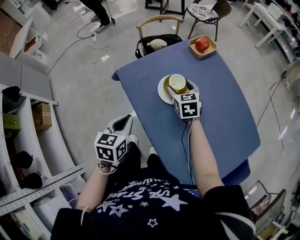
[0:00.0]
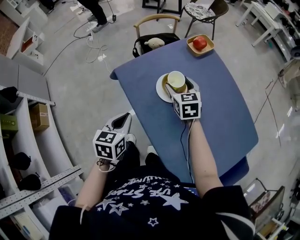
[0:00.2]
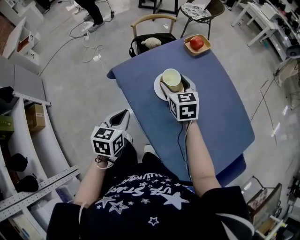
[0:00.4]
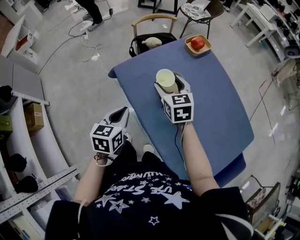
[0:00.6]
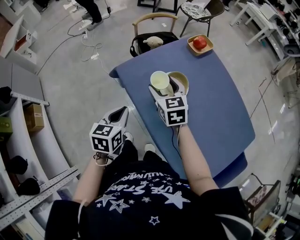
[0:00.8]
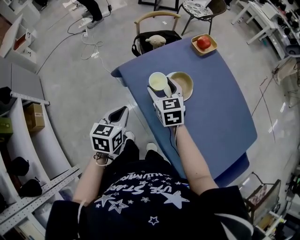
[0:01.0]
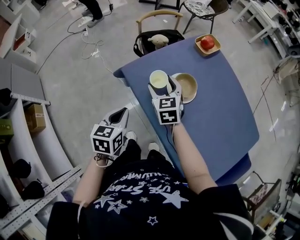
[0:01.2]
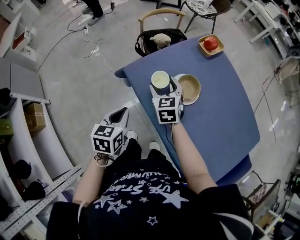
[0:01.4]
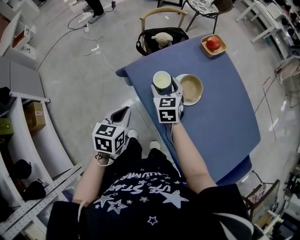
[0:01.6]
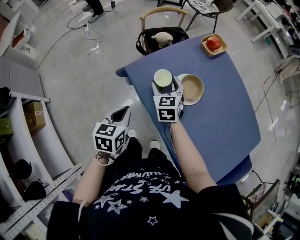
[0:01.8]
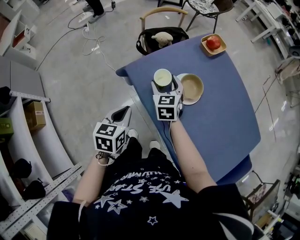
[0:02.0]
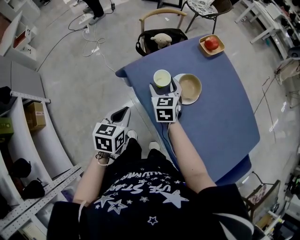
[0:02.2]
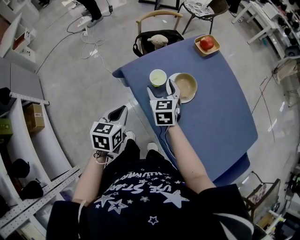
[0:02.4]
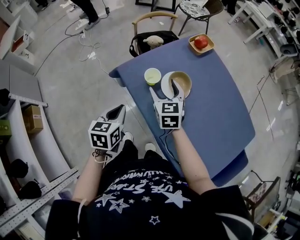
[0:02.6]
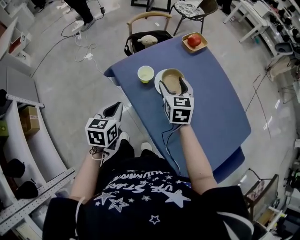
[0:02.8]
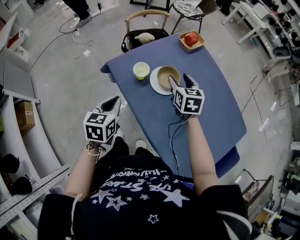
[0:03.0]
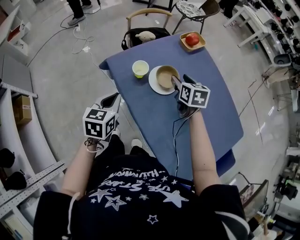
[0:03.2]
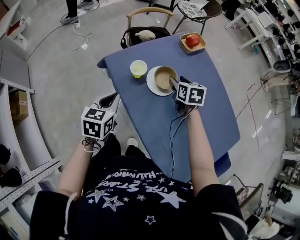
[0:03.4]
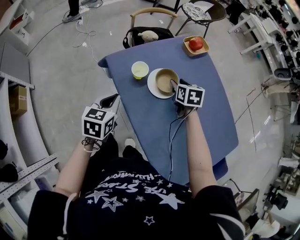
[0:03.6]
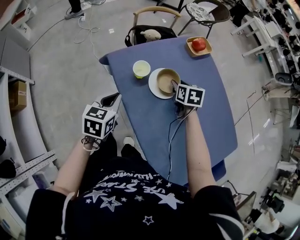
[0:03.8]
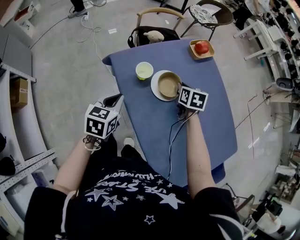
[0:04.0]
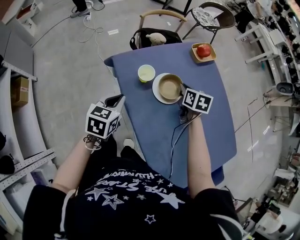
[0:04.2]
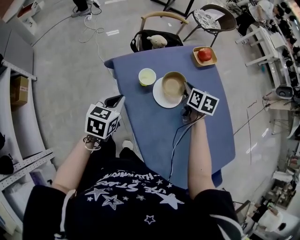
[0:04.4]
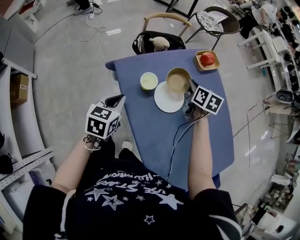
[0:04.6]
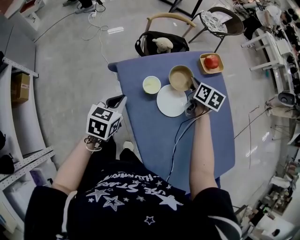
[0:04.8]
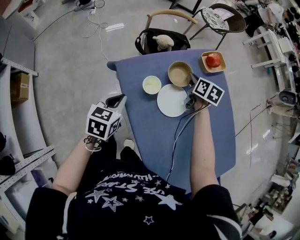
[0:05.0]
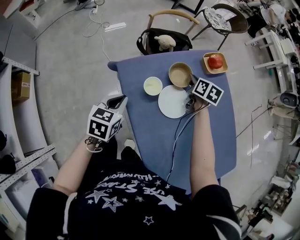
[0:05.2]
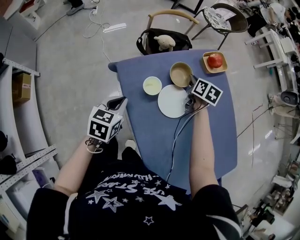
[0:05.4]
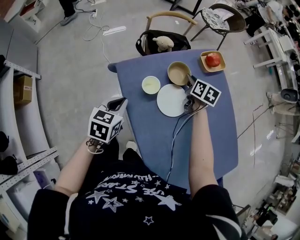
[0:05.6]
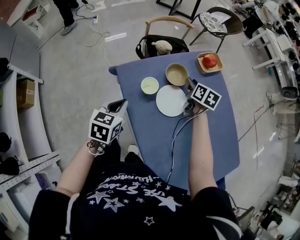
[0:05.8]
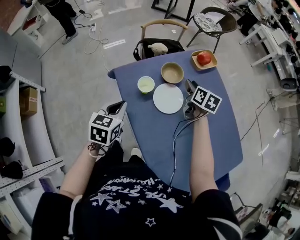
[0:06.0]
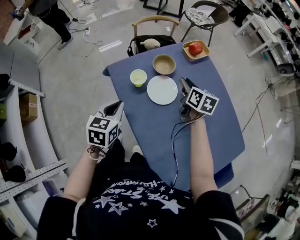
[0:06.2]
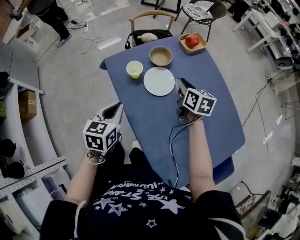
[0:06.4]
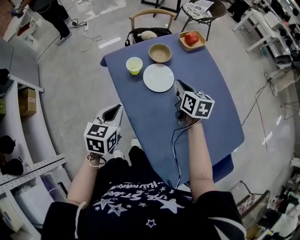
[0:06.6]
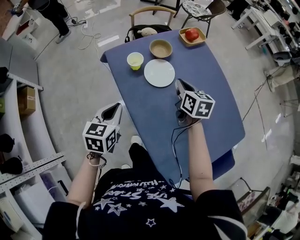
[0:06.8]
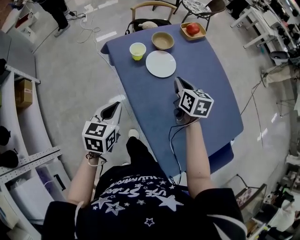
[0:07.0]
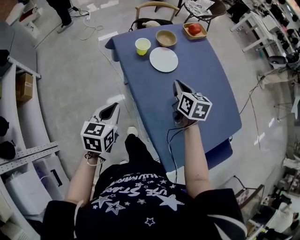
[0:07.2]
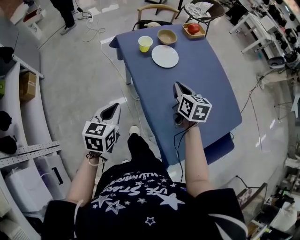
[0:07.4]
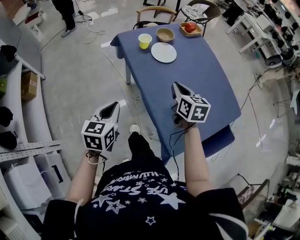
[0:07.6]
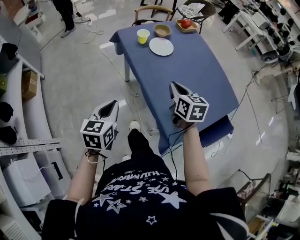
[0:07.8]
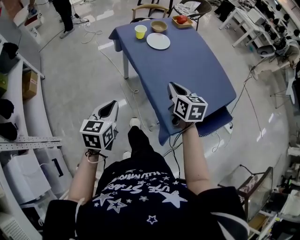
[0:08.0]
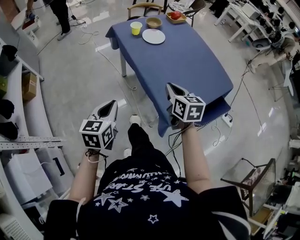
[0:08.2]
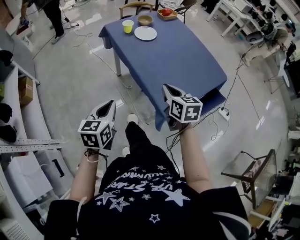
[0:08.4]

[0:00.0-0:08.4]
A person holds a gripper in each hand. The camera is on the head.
0:00.0 to 0:01.4: The left gripper shifts some 10 cm to the left, while the right gripper moves to the left, approximately 15 cm.
0:01.4 to 0:02.8: The right gripper is displaced to the right and upward by roughly 15 cm.
0:02.8 to 0:04.2: The right gripper moves downward, to the right and forward, some 10 cm, turns by some 20 degrees, and closes its fingers.
0:04.2 to 0:05.6: The right gripper travels forward by some 10 cm.
0:05.6 to 0:07.0: The two grippers go roughly 20 cm backward.
0:07.0 to 0:08.4: The grippers both shift backward by about 35 cm.

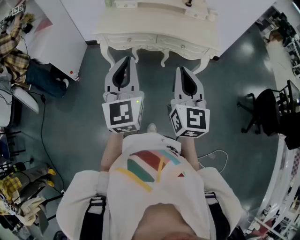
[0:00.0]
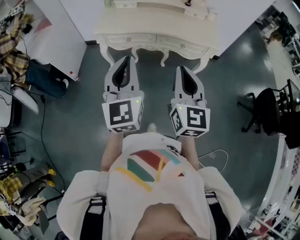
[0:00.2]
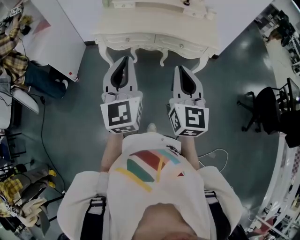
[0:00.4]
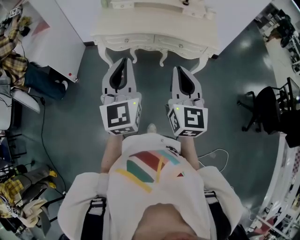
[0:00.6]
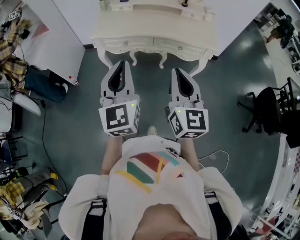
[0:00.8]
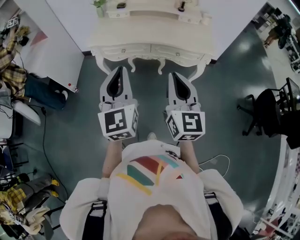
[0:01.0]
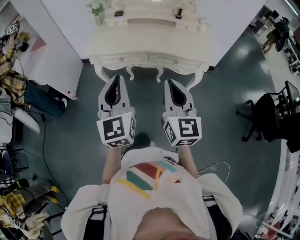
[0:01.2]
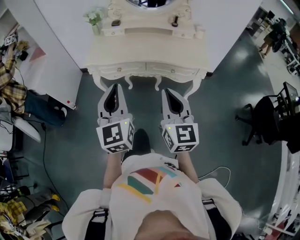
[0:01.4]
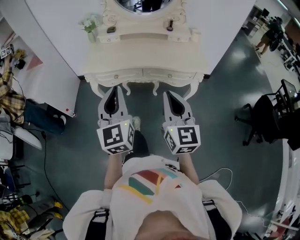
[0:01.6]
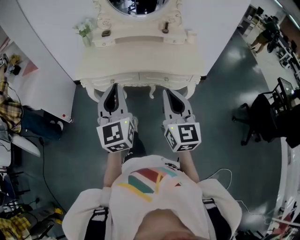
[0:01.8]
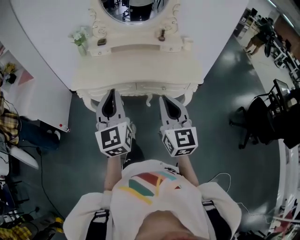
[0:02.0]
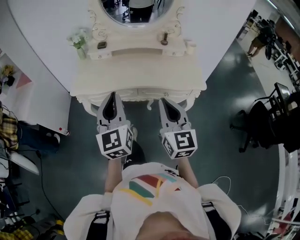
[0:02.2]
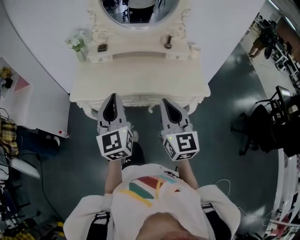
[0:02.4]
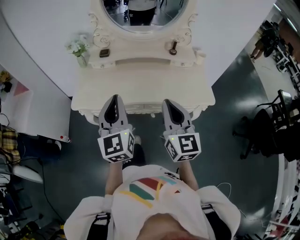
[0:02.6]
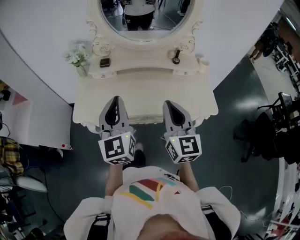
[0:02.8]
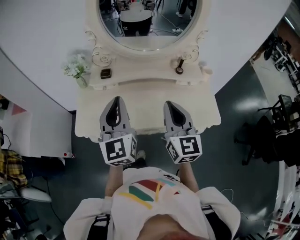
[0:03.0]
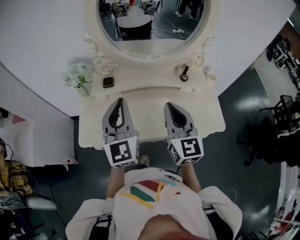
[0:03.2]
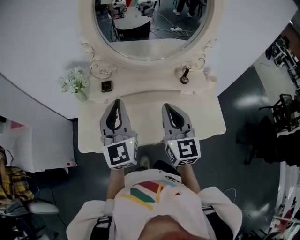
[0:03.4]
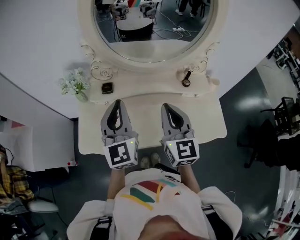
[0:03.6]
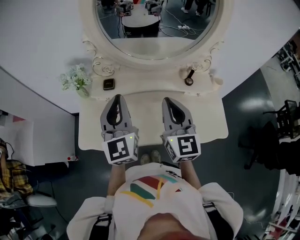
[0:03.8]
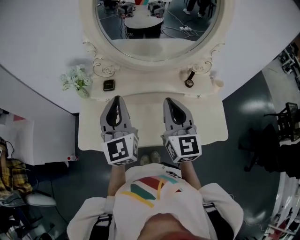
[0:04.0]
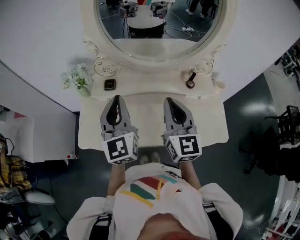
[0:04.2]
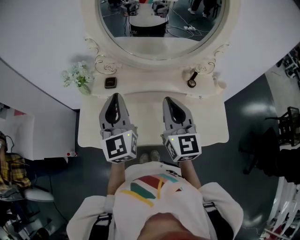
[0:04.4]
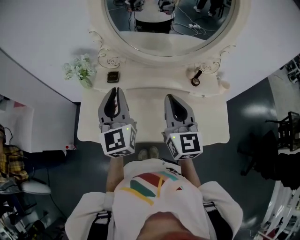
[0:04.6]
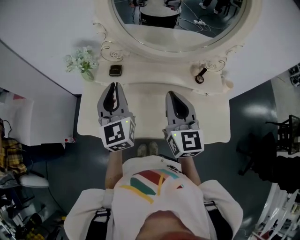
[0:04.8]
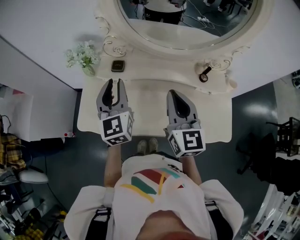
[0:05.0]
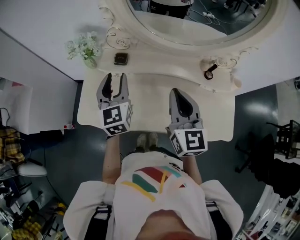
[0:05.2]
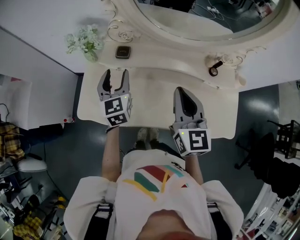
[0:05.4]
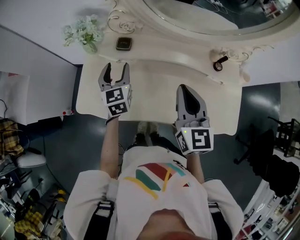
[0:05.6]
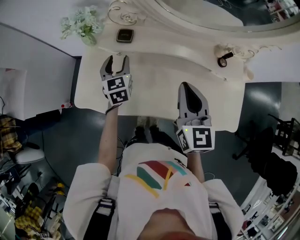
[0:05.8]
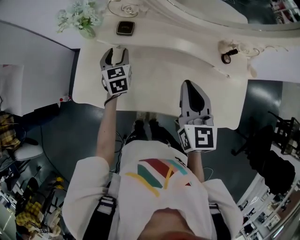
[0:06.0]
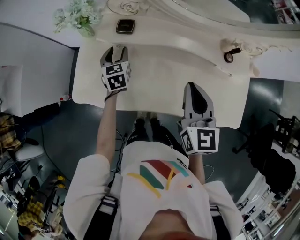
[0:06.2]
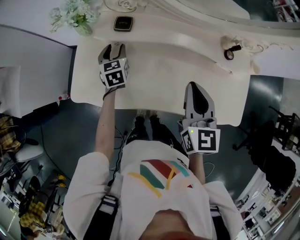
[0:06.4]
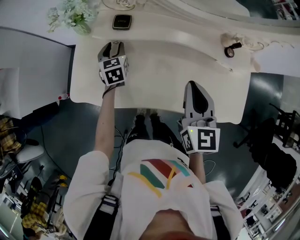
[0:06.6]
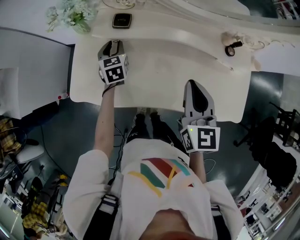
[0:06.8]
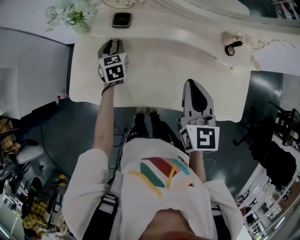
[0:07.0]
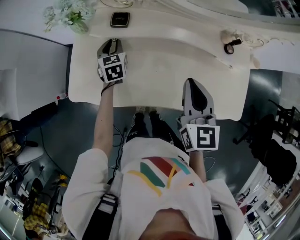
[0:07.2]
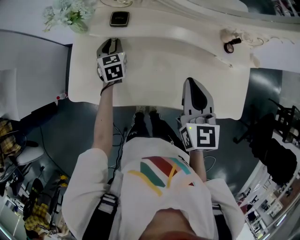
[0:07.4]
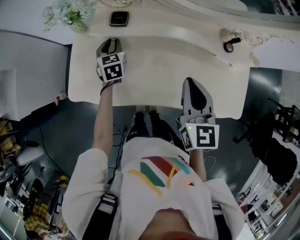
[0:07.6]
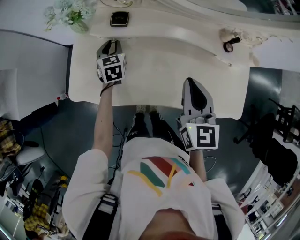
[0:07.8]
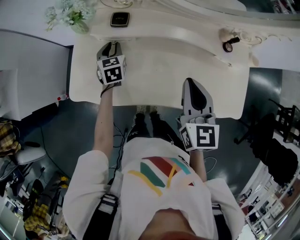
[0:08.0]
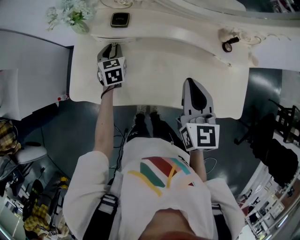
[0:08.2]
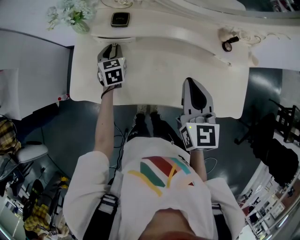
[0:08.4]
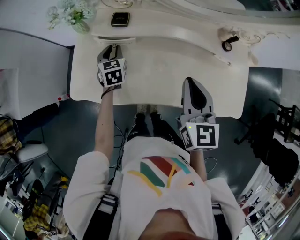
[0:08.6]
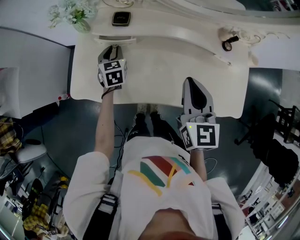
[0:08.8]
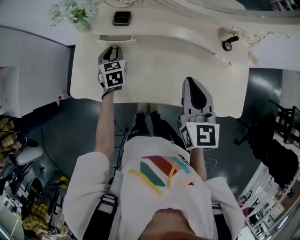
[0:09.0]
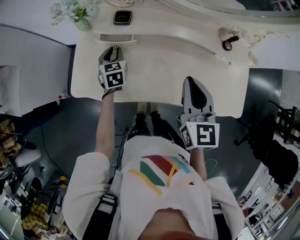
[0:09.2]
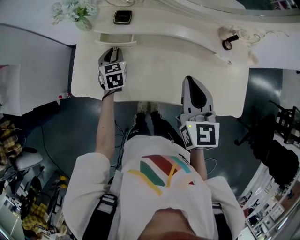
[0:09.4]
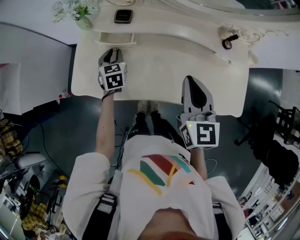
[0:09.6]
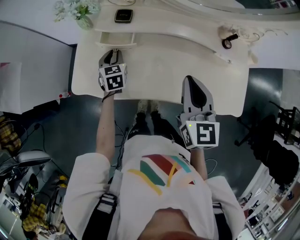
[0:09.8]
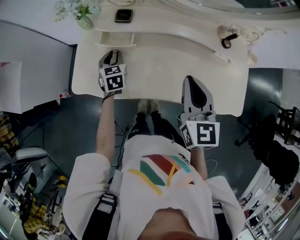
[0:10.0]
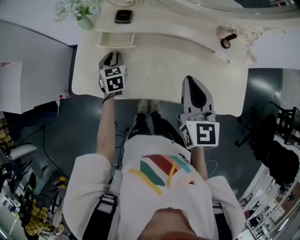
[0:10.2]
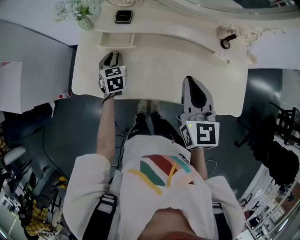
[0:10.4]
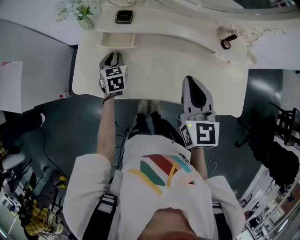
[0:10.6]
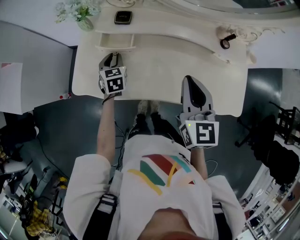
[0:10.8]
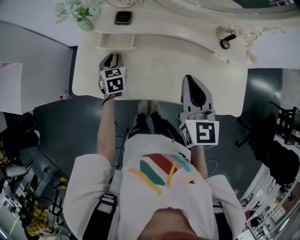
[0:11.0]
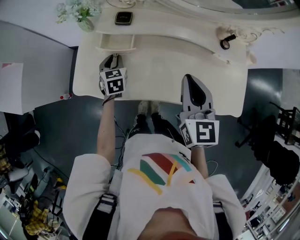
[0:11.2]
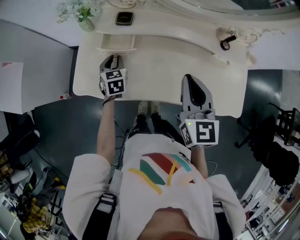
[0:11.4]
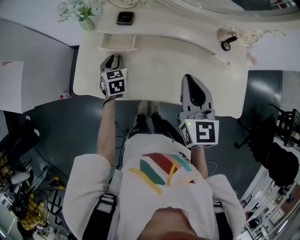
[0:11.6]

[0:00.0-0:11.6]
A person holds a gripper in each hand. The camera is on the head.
0:00.0 to 0:01.4: Both grippers travel together forward, some 5 cm.
0:01.4 to 0:02.8: The grippers both shift forward by roughly 30 cm.
0:02.8 to 0:04.4: The grippers both shift forward by roughly 20 cm.
0:04.4 to 0:05.8: The left gripper is displaced downward and forward by some 30 cm, tips its fingers downward by about 30 degrees, and opens its fingers. The right gripper travels downward by some 10 cm.
0:05.8 to 0:07.2: The left gripper moves downward, about 10 cm, and closes its fingers.
0:07.2 to 0:08.8: The grippers stay close to where they were, moving slightly.
0:08.8 to 0:10.2: There are only small adjustments of the grippers.
0:10.2 to 0:11.6: The two grippers keep their place.

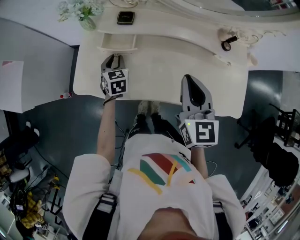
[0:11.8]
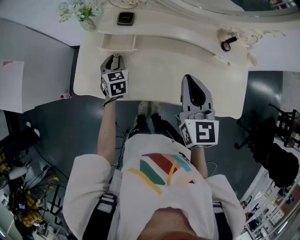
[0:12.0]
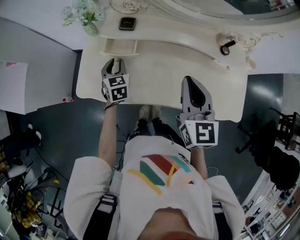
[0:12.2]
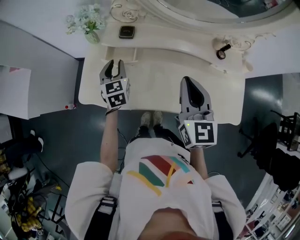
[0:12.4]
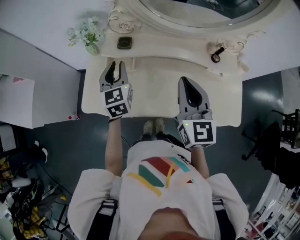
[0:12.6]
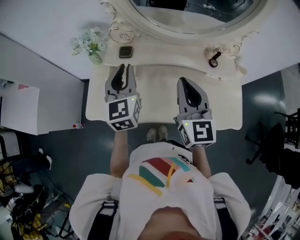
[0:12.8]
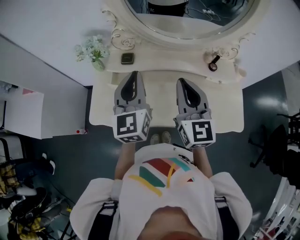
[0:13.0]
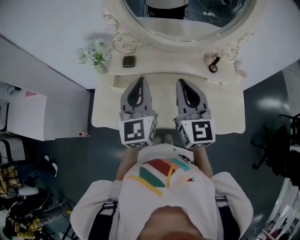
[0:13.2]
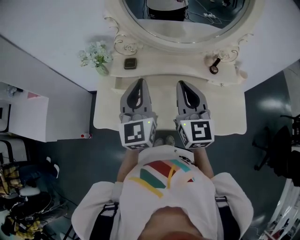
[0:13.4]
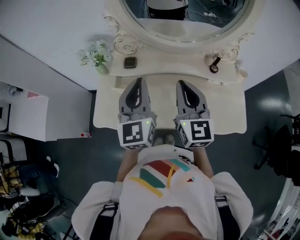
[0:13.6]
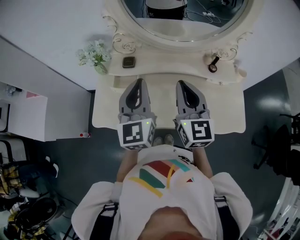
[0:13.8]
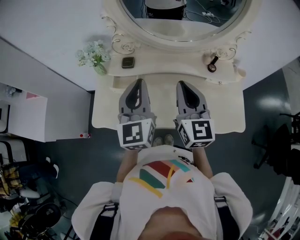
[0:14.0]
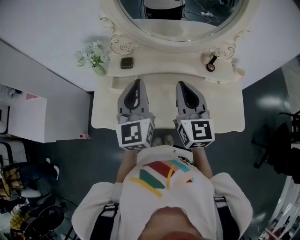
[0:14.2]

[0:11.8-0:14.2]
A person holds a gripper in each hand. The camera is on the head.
0:11.8 to 0:13.0: The right gripper travels upward by roughly 10 cm. Meanwhile the left gripper goes about 30 cm upward, and tilts its fingers roughly 40 degrees upward.
0:13.0 to 0:14.2: The grippers stay close to where they were, moving slightly.

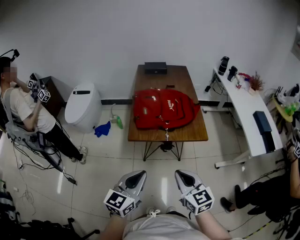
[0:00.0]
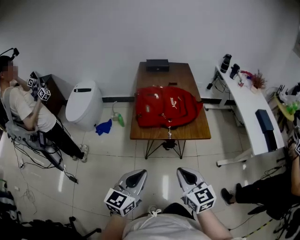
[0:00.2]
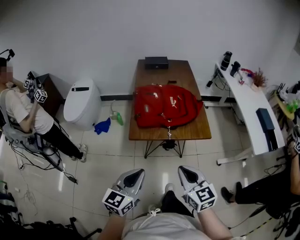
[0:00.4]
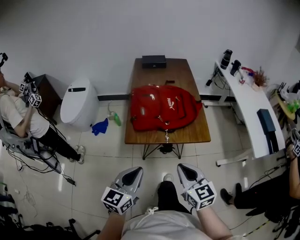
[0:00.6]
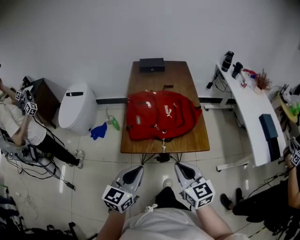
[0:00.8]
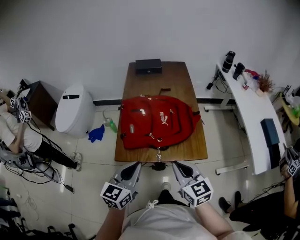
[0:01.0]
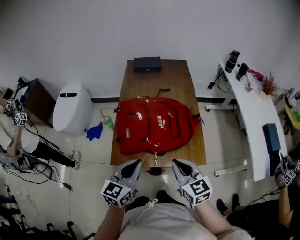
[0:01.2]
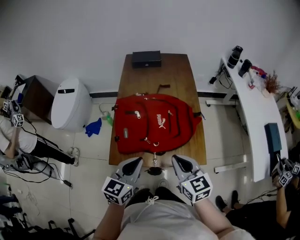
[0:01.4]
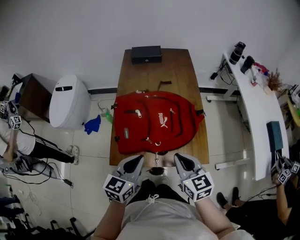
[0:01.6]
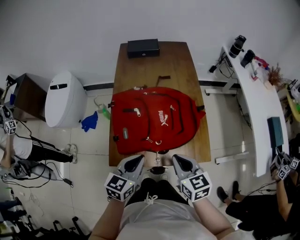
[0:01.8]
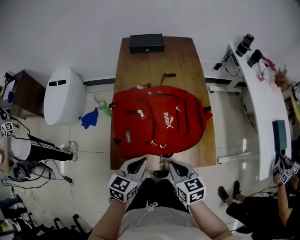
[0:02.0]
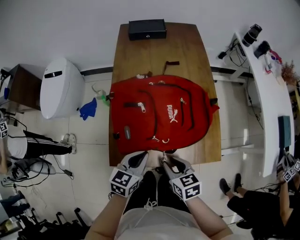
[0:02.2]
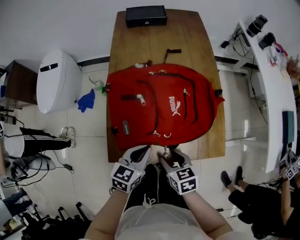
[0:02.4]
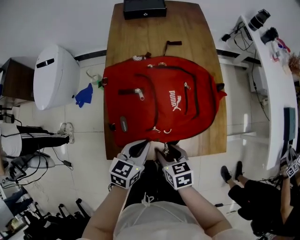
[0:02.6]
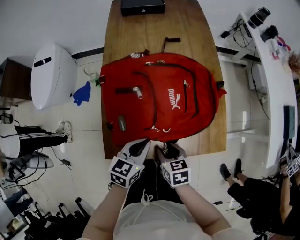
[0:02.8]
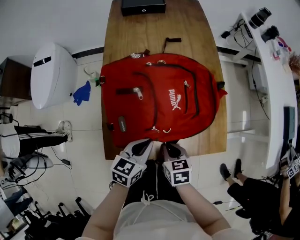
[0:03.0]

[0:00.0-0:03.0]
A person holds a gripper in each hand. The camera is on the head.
0:00.0 to 0:01.6: The grippers both shift forward by some 35 cm.
0:01.6 to 0:03.0: The two grippers go approximately 20 cm downward. The right gripper tilts its fingers roughly 30 degrees downward, and opens, then closes again; the left gripper swivels about 20 degrees.
